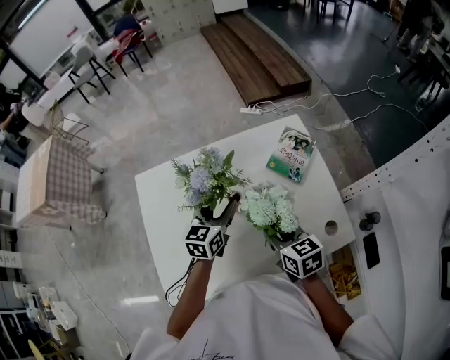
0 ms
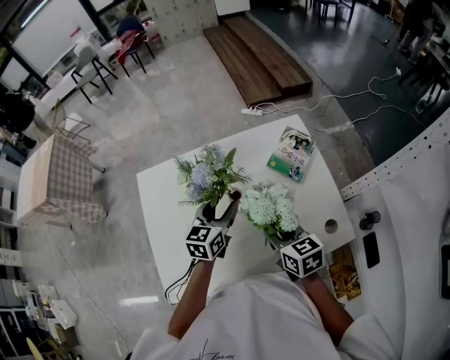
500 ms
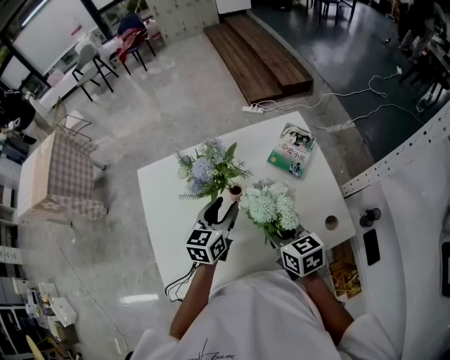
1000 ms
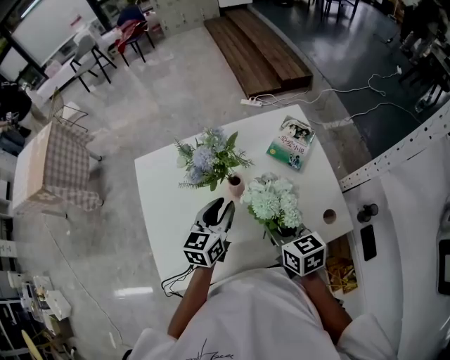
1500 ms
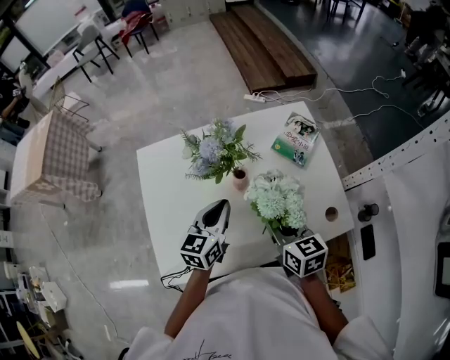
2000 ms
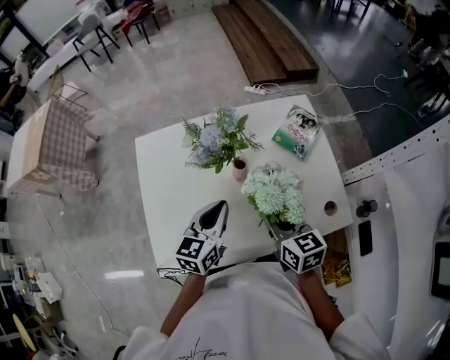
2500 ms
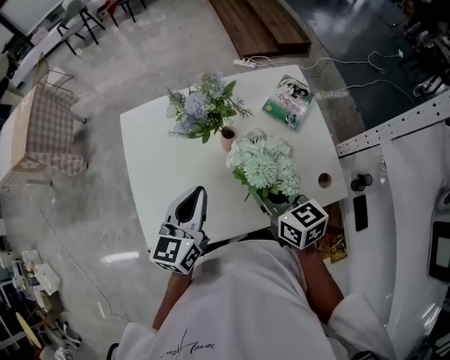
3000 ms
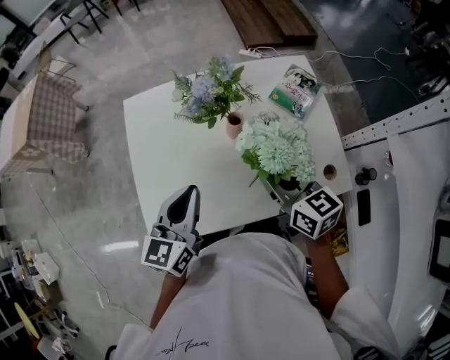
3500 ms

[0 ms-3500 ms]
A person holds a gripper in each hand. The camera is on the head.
0 ms to 2000 ms: The left gripper shifts roughly 10 cm backward, and closes.
2000 ms to 3500 ms: The left gripper goes approximately 15 cm backward, to the left and upward.

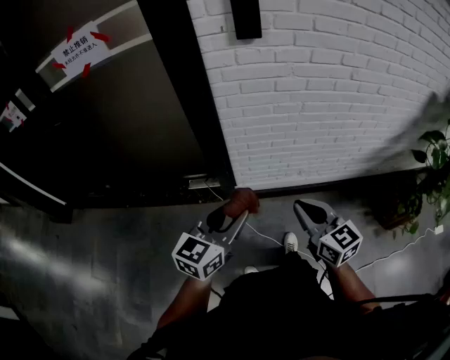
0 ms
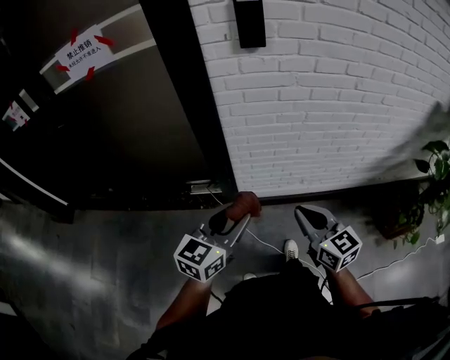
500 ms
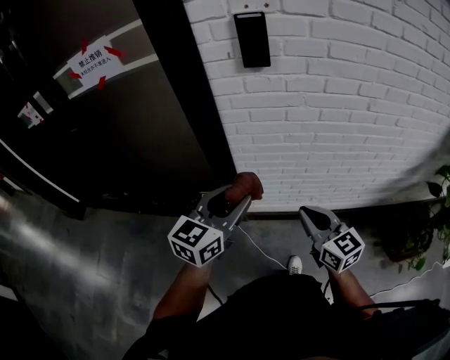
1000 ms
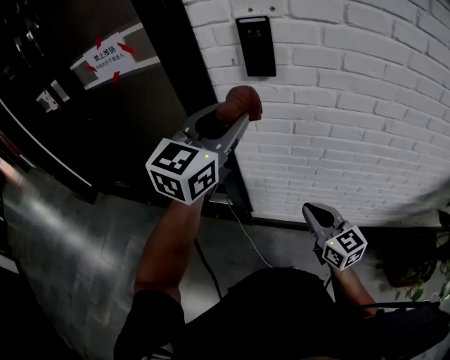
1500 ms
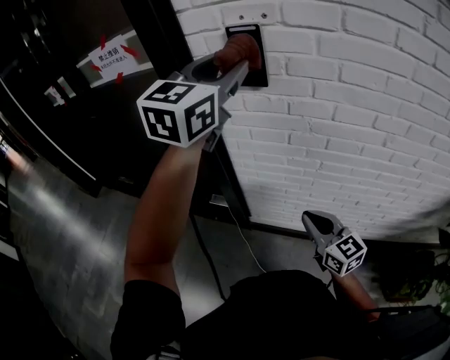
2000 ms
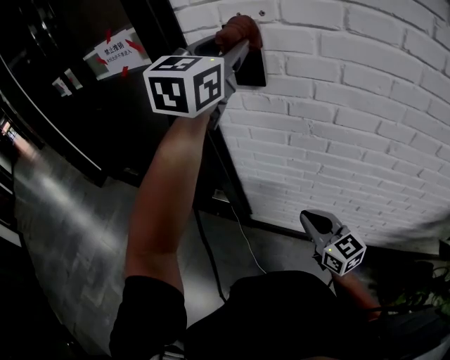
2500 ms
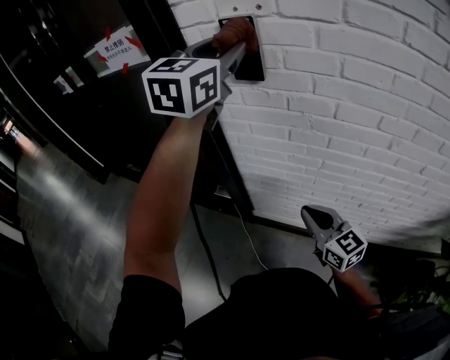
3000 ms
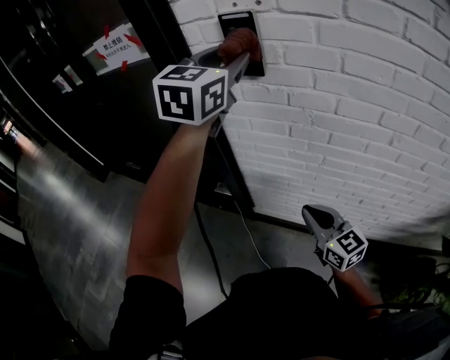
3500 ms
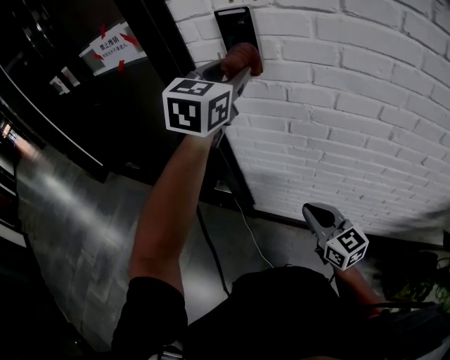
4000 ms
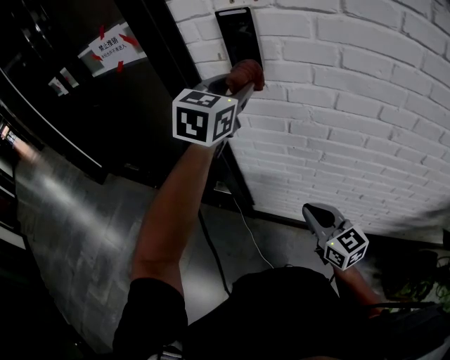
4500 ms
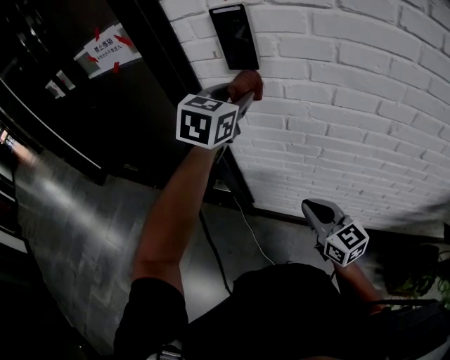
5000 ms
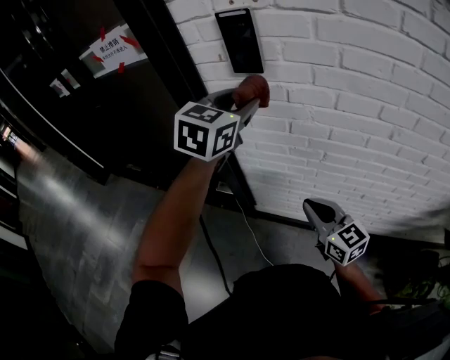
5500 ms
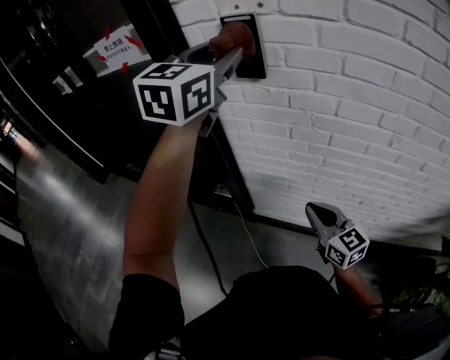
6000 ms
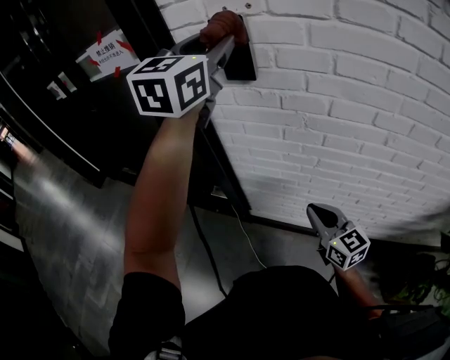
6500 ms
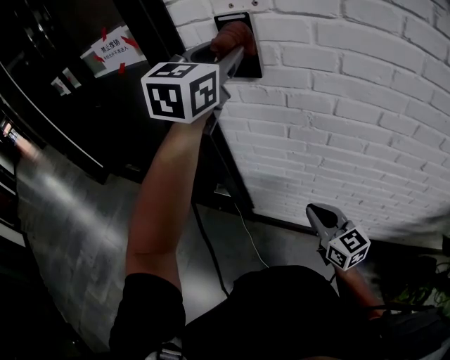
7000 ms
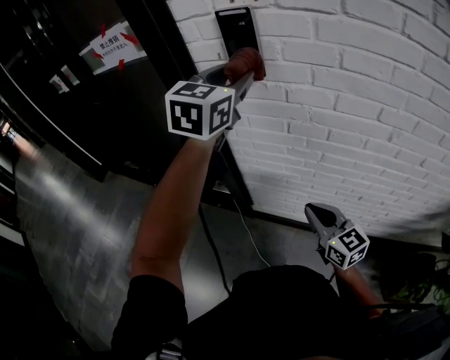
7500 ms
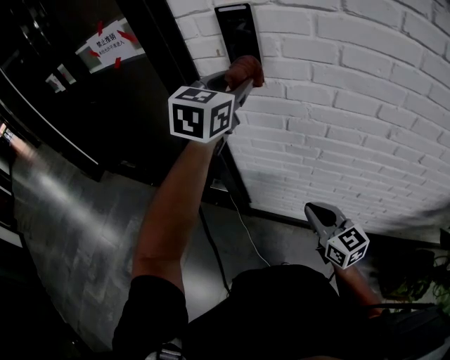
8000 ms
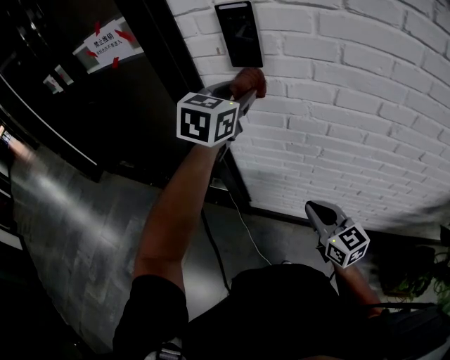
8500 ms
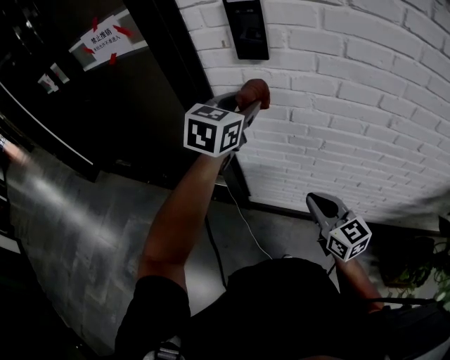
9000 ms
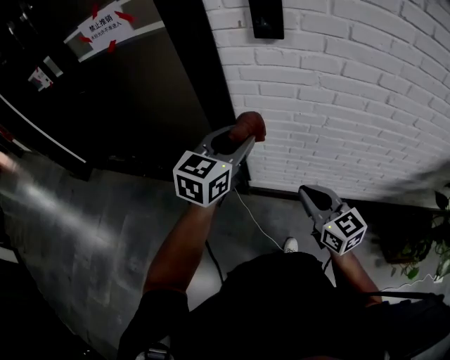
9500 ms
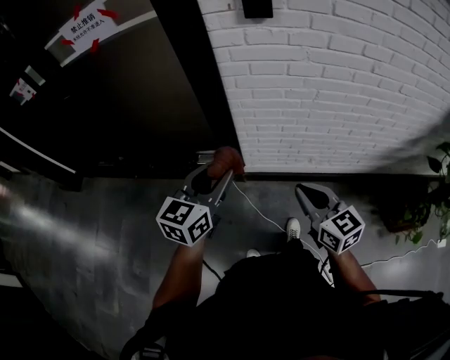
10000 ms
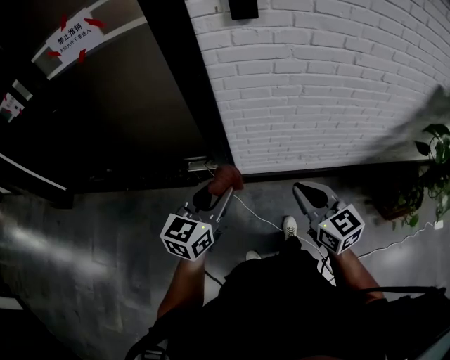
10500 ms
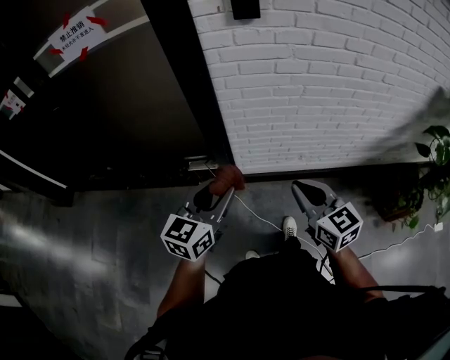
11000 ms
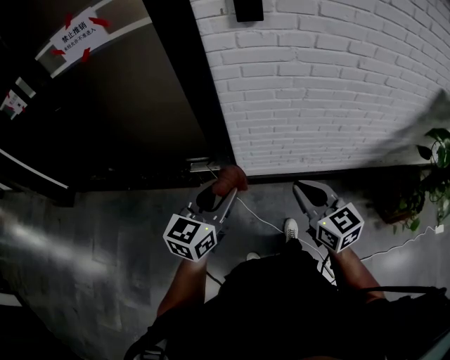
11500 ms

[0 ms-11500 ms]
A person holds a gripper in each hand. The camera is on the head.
0 ms to 2000 ms: The left gripper moves upward and forward, some 50 cm, and swivels some 30 degrees; the right gripper goes about 20 cm forward and to the right.
2000 ms to 4000 ms: The left gripper heads downward, covering some 10 cm.
4000 ms to 6000 ms: The left gripper is displaced upward by about 5 cm.
6000 ms to 7500 ms: The left gripper travels downward by roughly 10 cm.
7500 ms to 9500 ms: The right gripper moves to the left and backward, some 10 cm. The left gripper shifts some 25 cm downward, backward and to the left.
9500 ms to 11500 ms: The right gripper shifts some 10 cm backward. Meanwhile the left gripper moves backward and downward, approximately 20 cm.

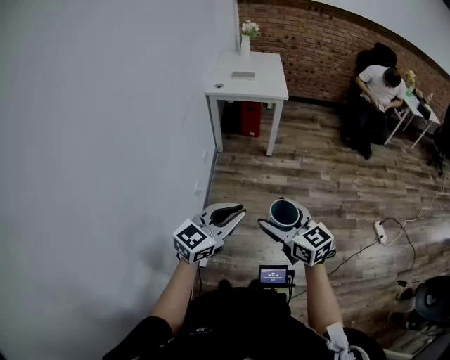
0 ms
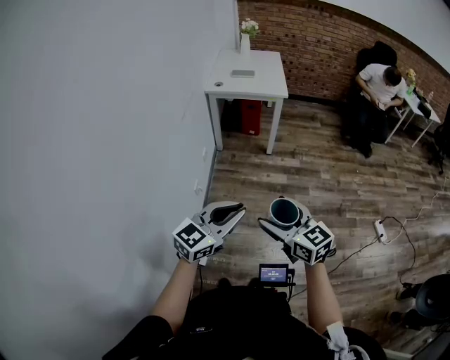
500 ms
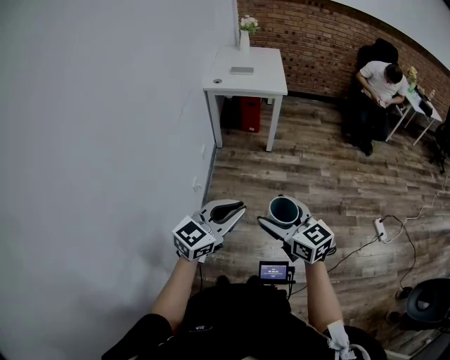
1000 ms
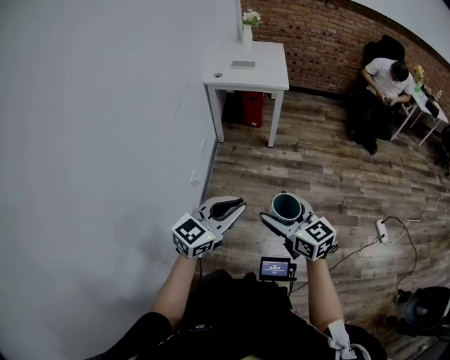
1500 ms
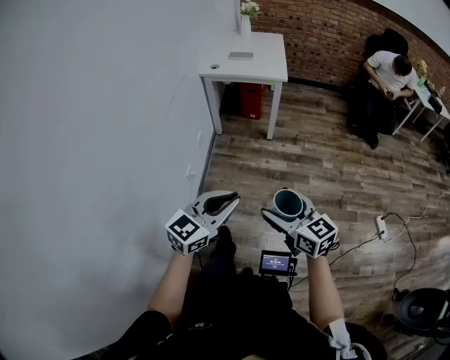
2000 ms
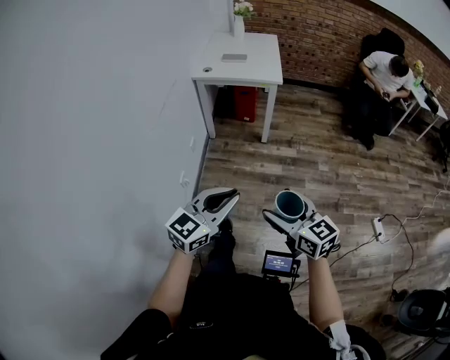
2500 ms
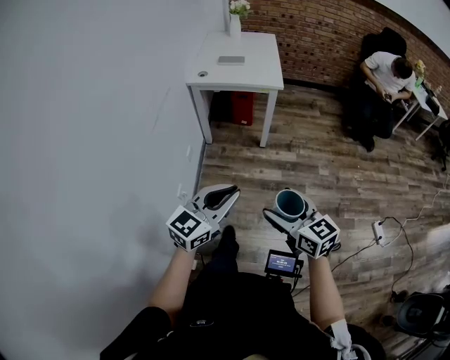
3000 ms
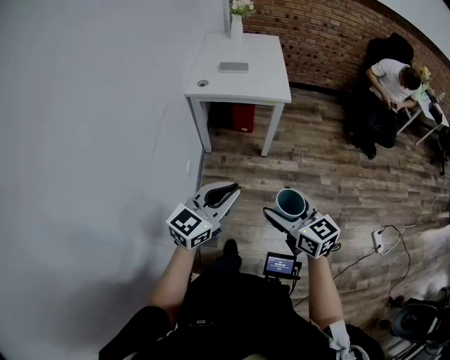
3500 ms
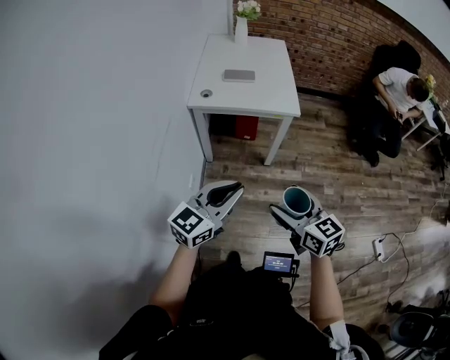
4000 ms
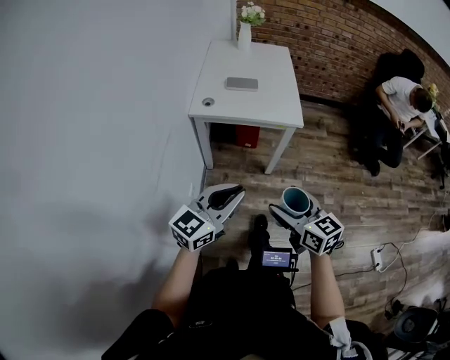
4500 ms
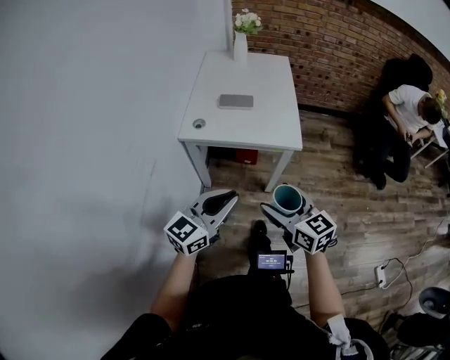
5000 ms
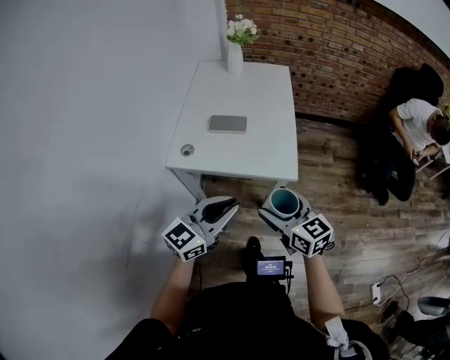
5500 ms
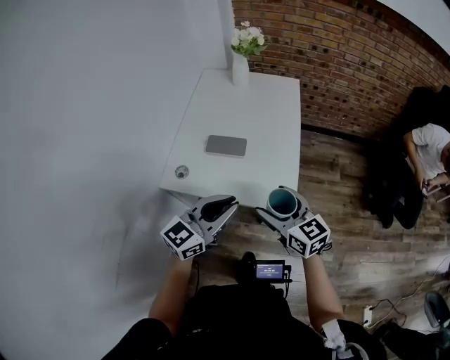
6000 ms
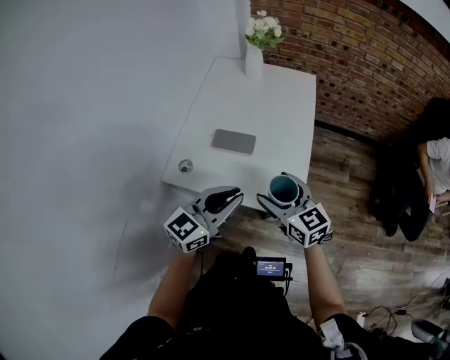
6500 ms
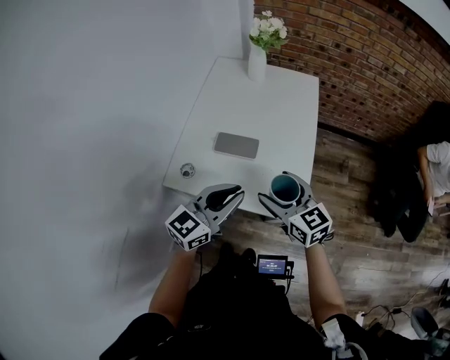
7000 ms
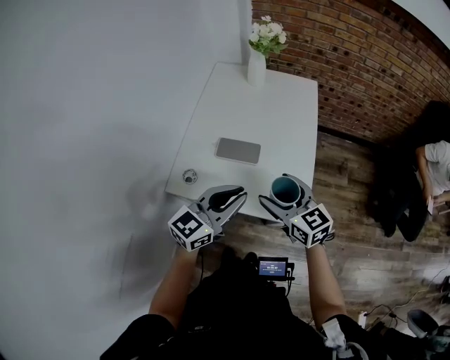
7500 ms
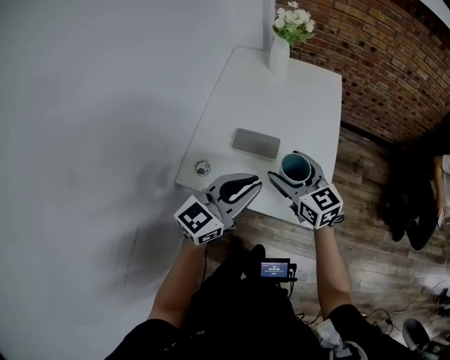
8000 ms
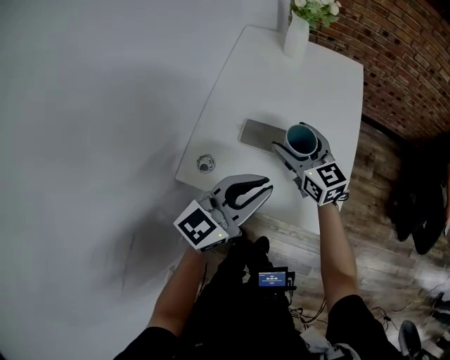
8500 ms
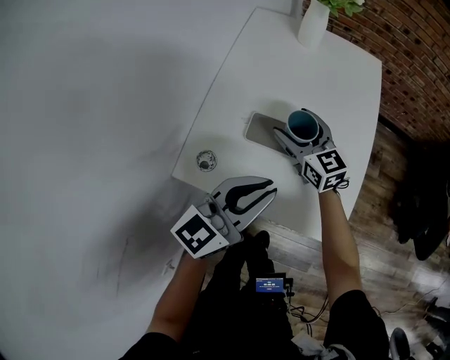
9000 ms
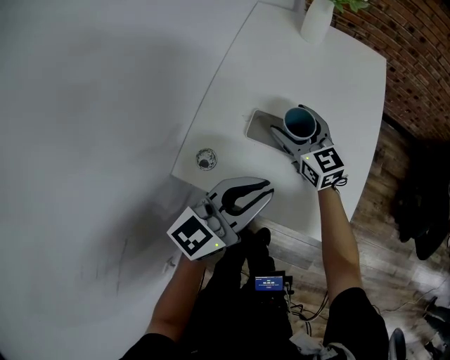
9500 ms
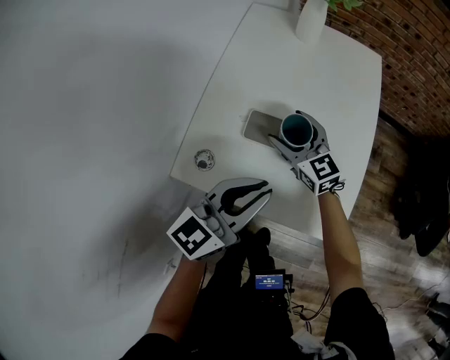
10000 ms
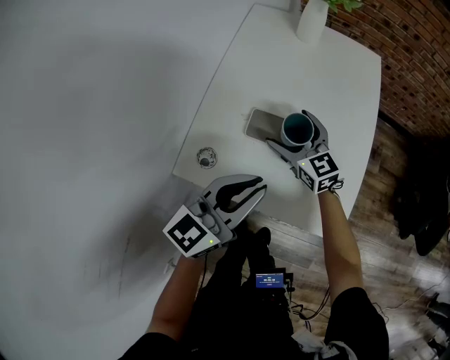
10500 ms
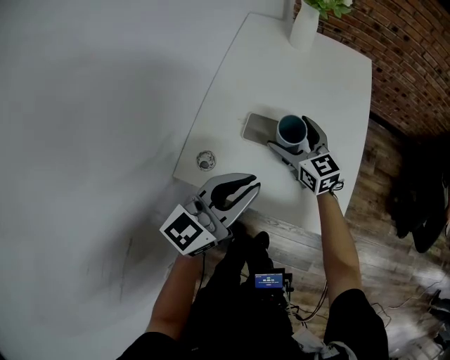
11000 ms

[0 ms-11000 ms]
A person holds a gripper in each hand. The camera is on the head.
0 ms to 2000 ms: Both grippers travel together to the right, approximately 5 cm.
2000 ms to 3500 ms: Both grippers move forward, roughly 25 cm.
3500 ms to 5500 ms: The grippers both shift forward by about 40 cm.
5500 ms to 7500 ms: The grippers both shift forward by about 20 cm.
7500 ms to 9000 ms: The right gripper goes approximately 25 cm forward, downward and to the left; the left gripper heads forward, covering about 5 cm.
9000 ms to 11000 ms: The grippers make only small movements.

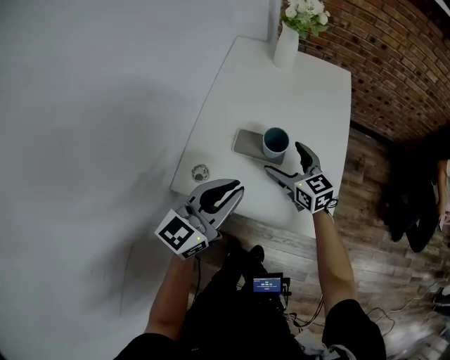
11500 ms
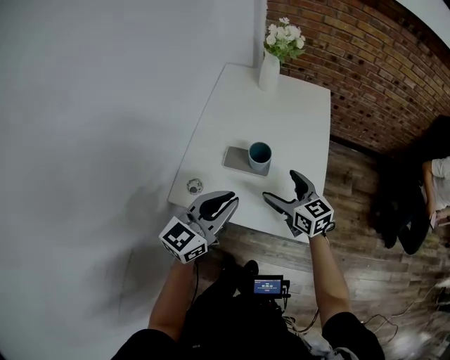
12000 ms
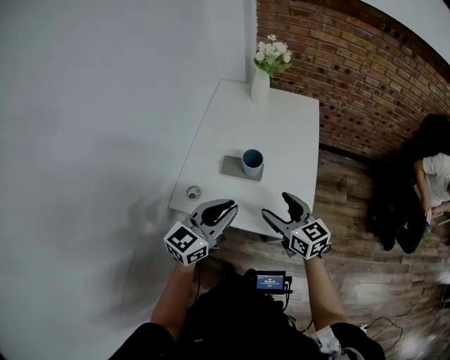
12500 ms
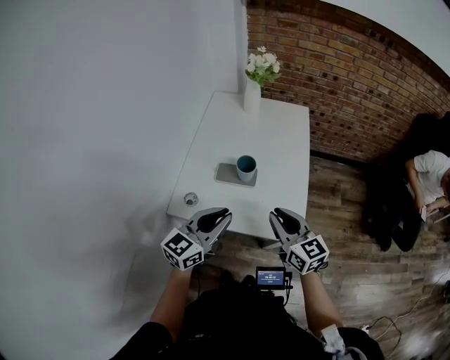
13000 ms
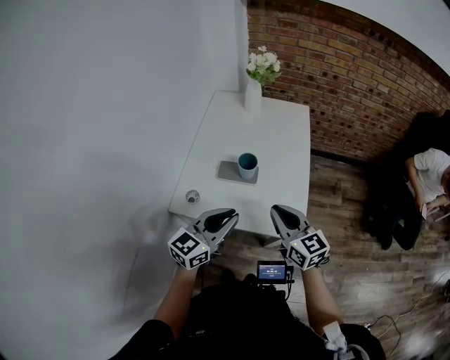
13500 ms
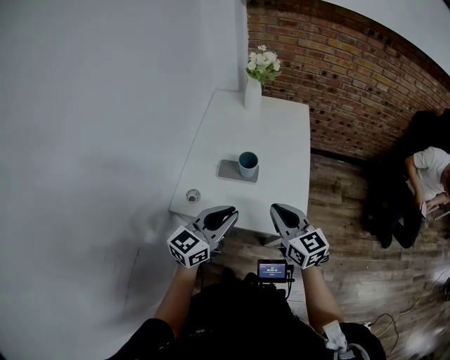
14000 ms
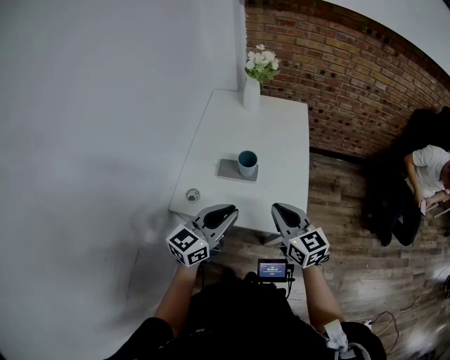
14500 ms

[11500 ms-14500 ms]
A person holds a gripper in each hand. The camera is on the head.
11500 ms to 13000 ms: The left gripper goes about 5 cm backward, while the right gripper shifts about 25 cm backward, upward and to the right, and closes.
13000 ms to 14500 ms: The grippers move only a little.
